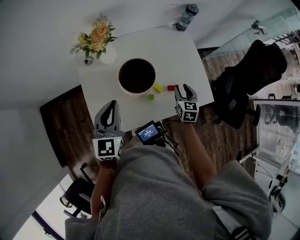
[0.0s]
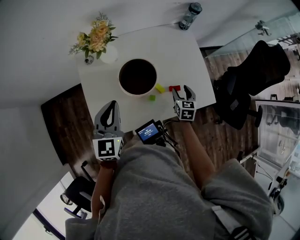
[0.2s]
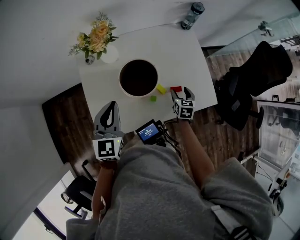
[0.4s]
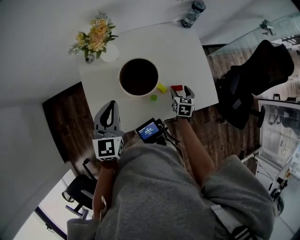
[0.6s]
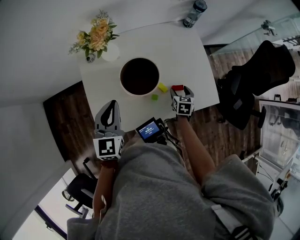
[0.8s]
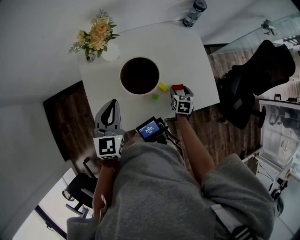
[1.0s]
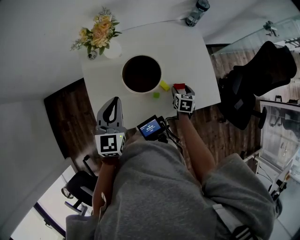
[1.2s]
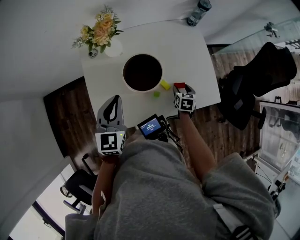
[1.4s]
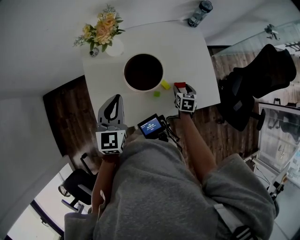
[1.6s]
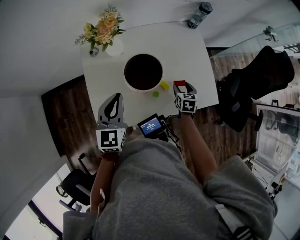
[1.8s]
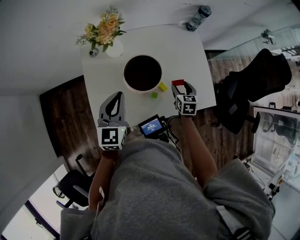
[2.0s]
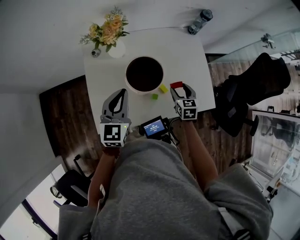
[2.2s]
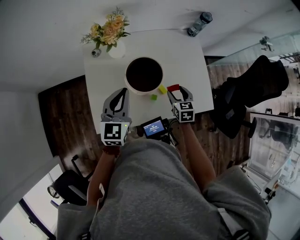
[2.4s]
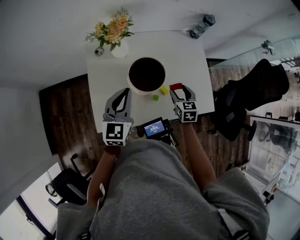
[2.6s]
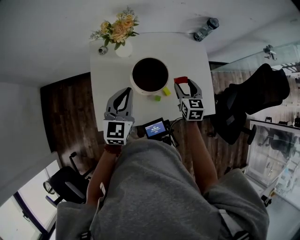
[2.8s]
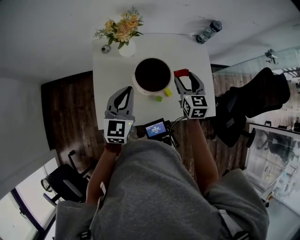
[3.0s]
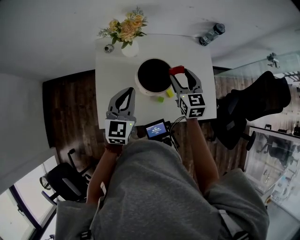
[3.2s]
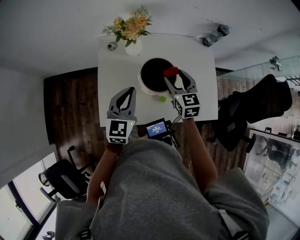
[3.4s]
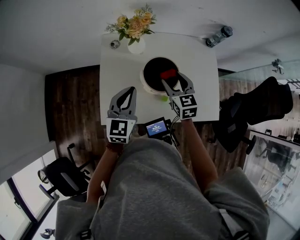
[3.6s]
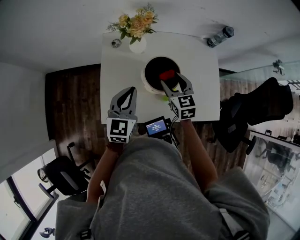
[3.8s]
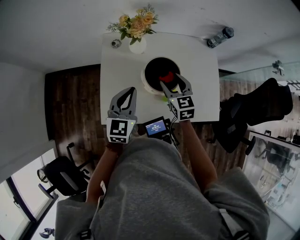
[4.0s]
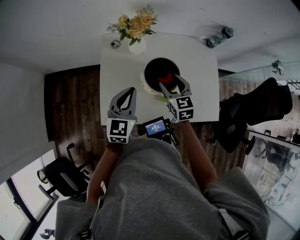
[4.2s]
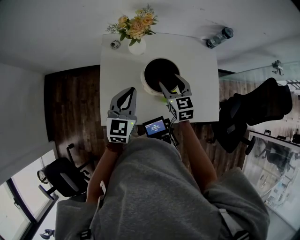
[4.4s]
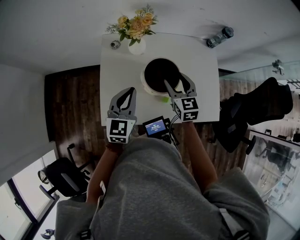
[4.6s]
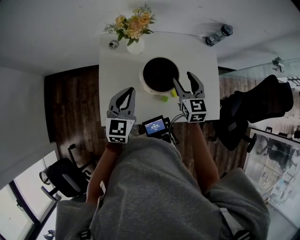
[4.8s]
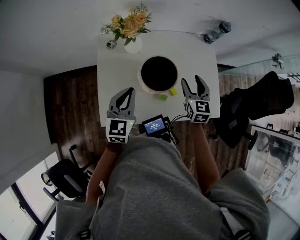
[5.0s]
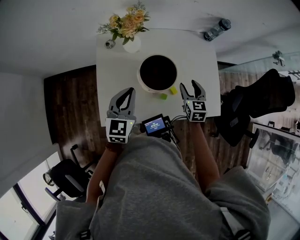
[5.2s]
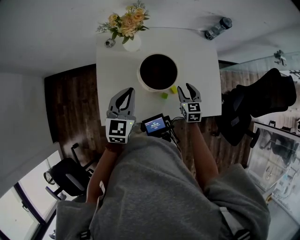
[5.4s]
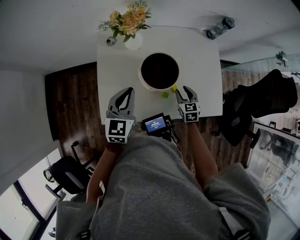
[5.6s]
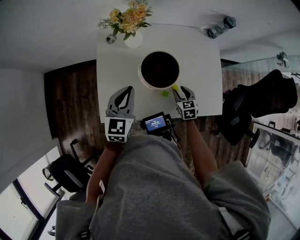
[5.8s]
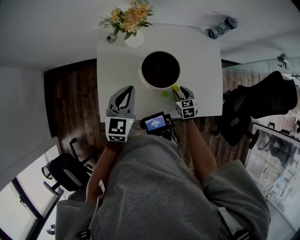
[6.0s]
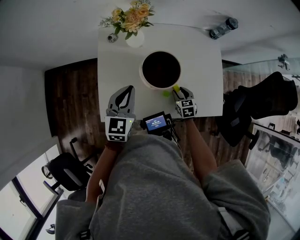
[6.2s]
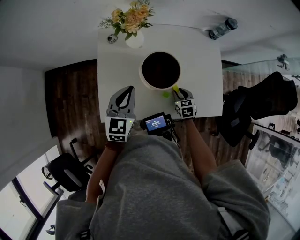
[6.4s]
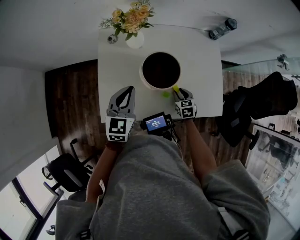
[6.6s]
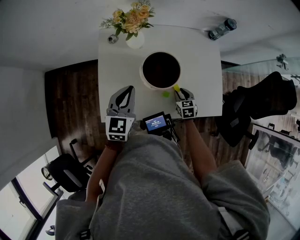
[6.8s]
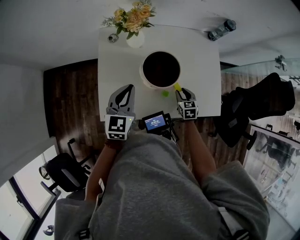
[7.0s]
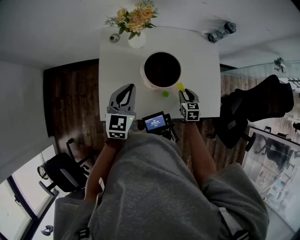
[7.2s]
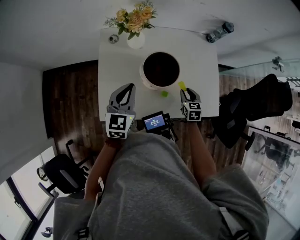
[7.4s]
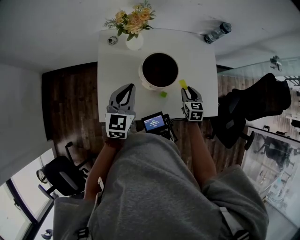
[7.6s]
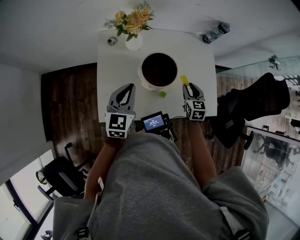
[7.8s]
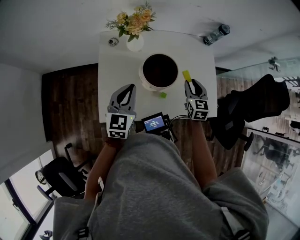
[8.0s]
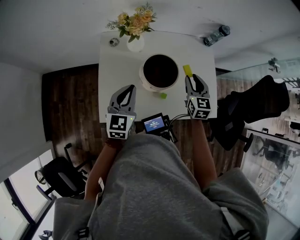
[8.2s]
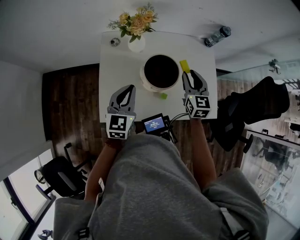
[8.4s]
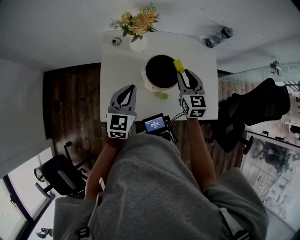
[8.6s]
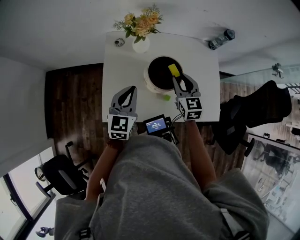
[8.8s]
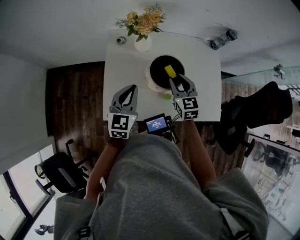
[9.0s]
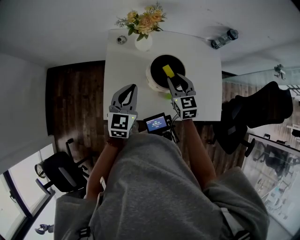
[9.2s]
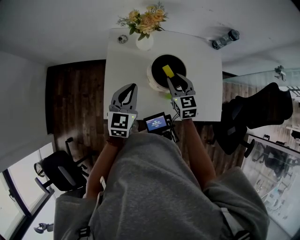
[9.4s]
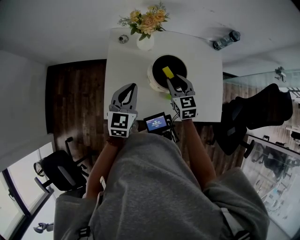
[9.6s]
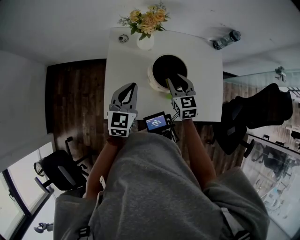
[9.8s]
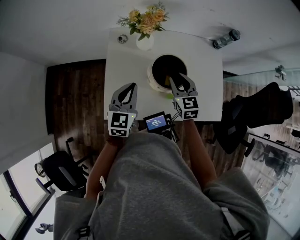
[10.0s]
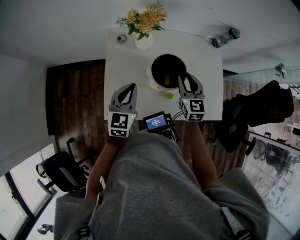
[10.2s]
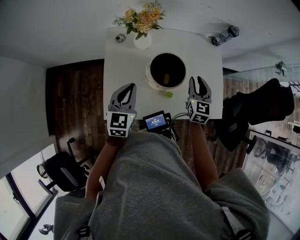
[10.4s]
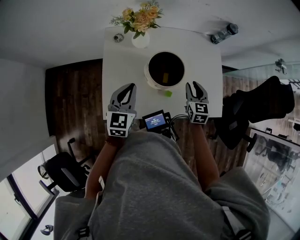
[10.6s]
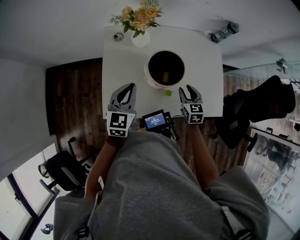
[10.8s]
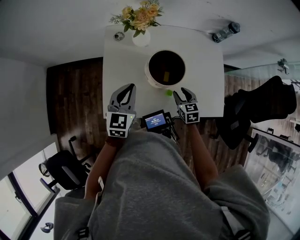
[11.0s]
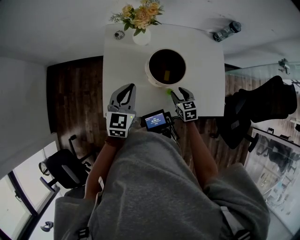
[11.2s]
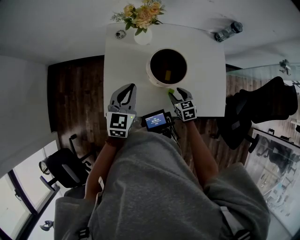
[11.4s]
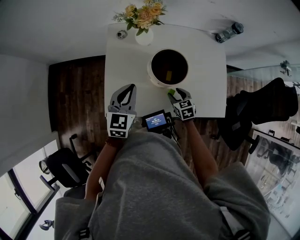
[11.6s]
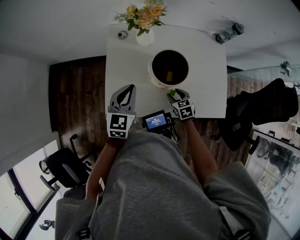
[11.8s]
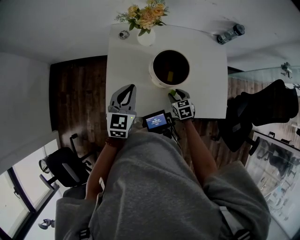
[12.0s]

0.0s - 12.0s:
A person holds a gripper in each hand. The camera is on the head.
0.0s - 1.6s: The right gripper is displaced downward by about 10 cm.
1.6s - 3.0s: The right gripper shifts roughly 25 cm upward and to the left, and rotates some 30 degrees.
3.0s - 4.4s: The right gripper is displaced to the left by roughly 10 cm.
4.4s - 6.0s: The right gripper shifts about 25 cm downward and to the right, and rotates some 20 degrees.
6.0s - 7.6s: The right gripper heads upward, covering roughly 10 cm.
7.6s - 9.0s: The right gripper shifts some 20 cm to the left and upward, and swivels roughly 20 degrees.
9.0s - 10.4s: The right gripper moves to the right, some 10 cm.
10.4s - 12.0s: The right gripper is displaced downward by roughly 20 cm, and tilts its fingers approximately 30 degrees downward.

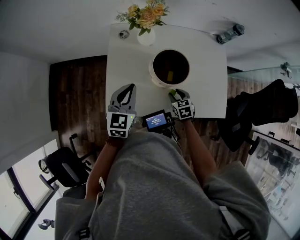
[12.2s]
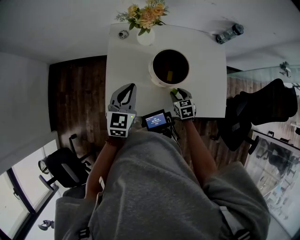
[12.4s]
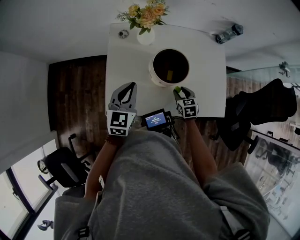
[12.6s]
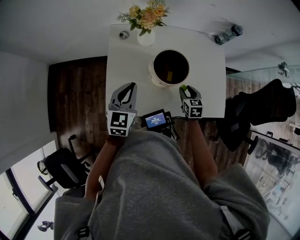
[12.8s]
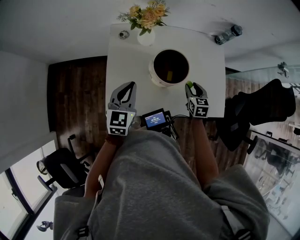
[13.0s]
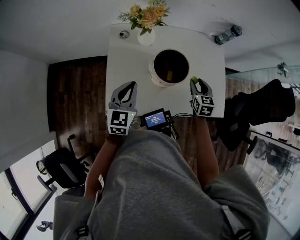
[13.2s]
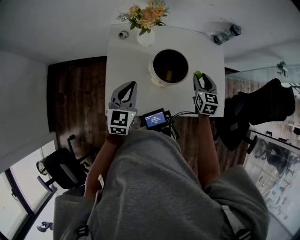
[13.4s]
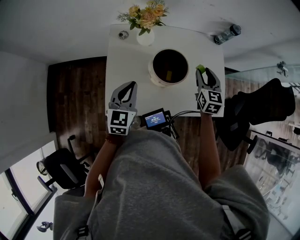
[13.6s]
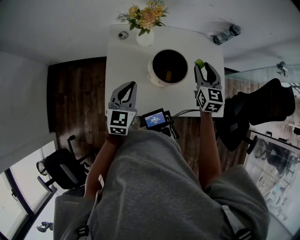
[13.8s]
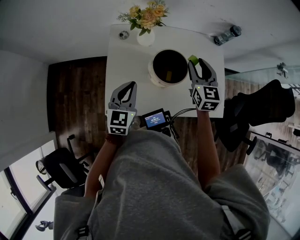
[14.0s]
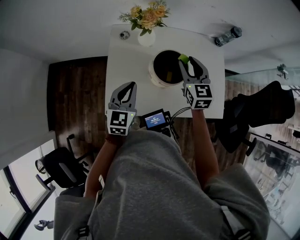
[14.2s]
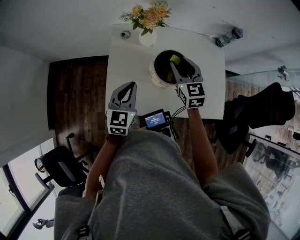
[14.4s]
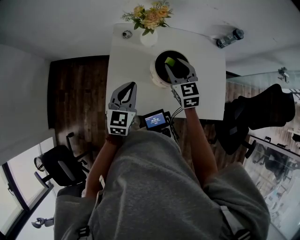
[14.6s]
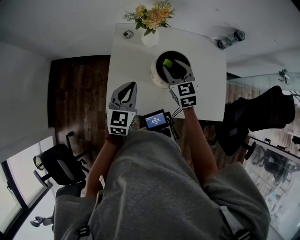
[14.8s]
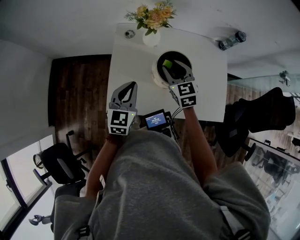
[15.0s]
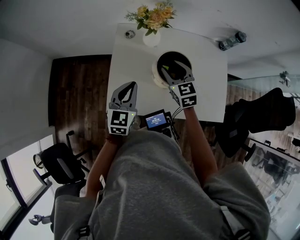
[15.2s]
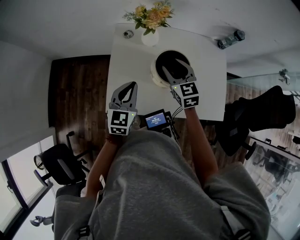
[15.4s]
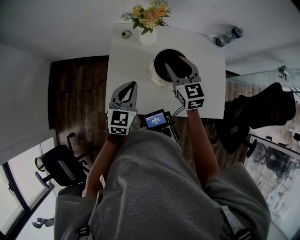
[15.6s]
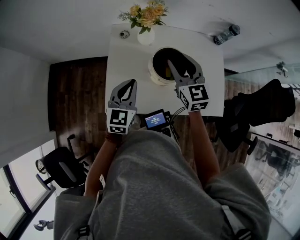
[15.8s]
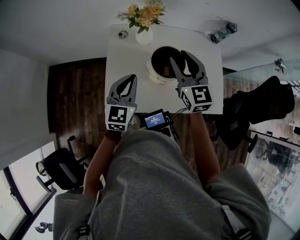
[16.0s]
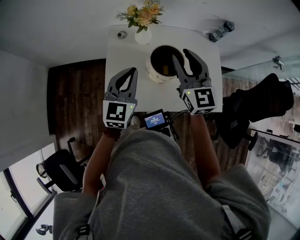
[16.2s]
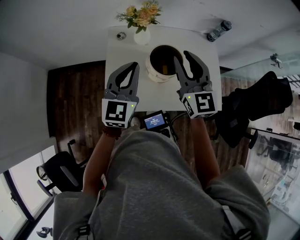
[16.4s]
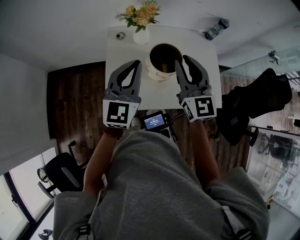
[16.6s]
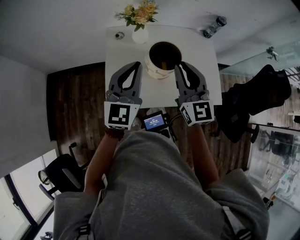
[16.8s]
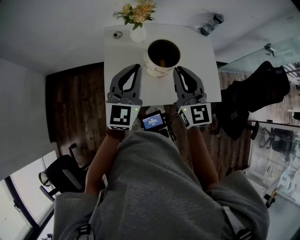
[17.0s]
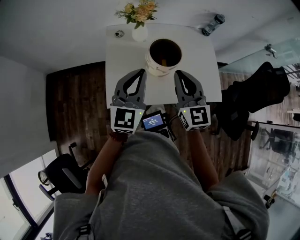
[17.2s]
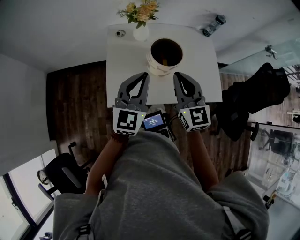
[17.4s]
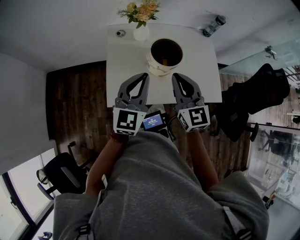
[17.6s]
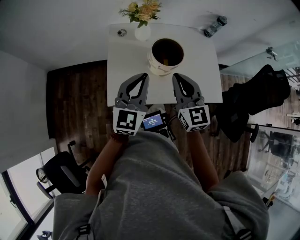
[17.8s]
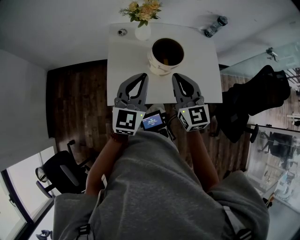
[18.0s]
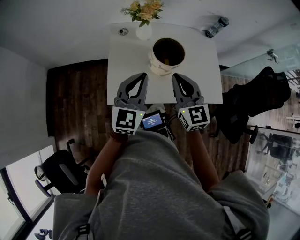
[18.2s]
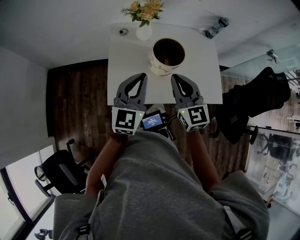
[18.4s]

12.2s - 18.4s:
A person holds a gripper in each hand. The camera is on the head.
12.2s - 13.8s: The right gripper heads upward and forward, covering some 30 cm, and points its fingers approximately 30 degrees further upward.
13.8s - 15.4s: The right gripper moves to the left, some 15 cm, and turns by approximately 20 degrees.
15.4s - 16.8s: The left gripper travels upward by approximately 15 cm, and rotates approximately 20 degrees. Meanwhile the right gripper shifts about 20 cm upward and backward, turns by approximately 30 degrees, and closes up.
16.8s - 18.4s: The right gripper moves downward, roughly 5 cm, while the left gripper is displaced backward by roughly 5 cm.

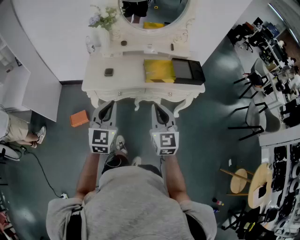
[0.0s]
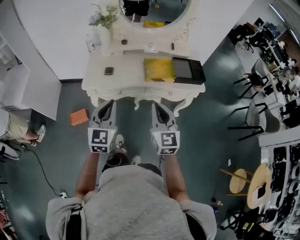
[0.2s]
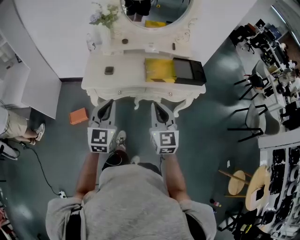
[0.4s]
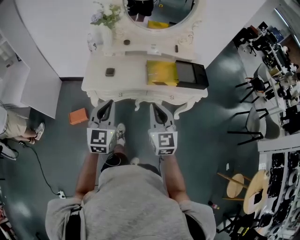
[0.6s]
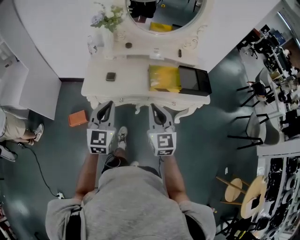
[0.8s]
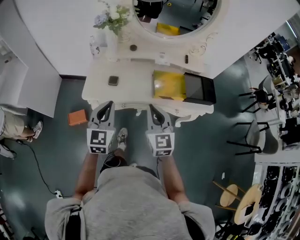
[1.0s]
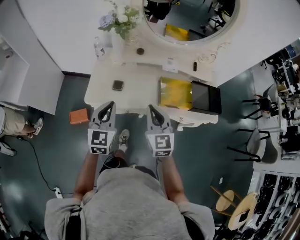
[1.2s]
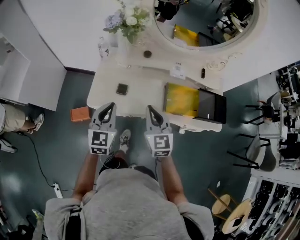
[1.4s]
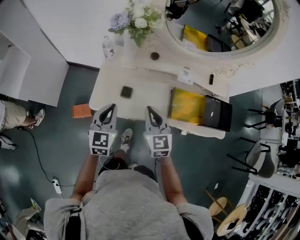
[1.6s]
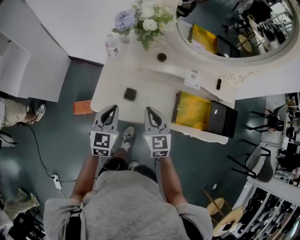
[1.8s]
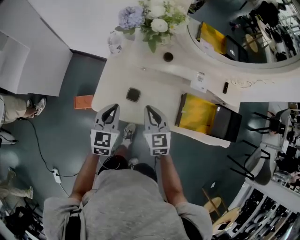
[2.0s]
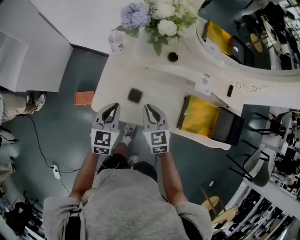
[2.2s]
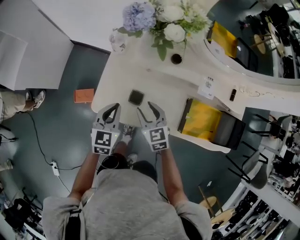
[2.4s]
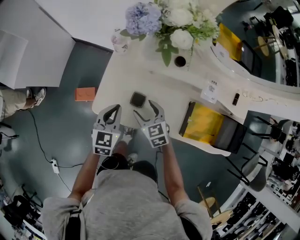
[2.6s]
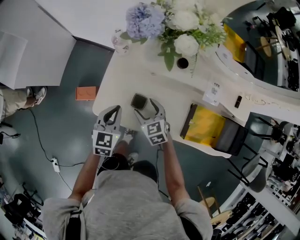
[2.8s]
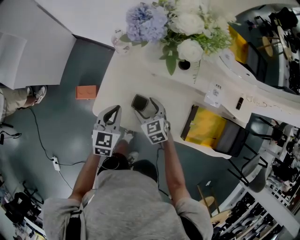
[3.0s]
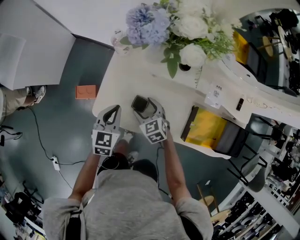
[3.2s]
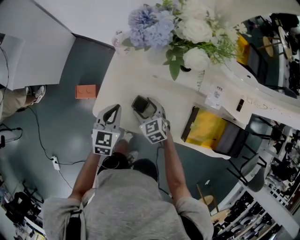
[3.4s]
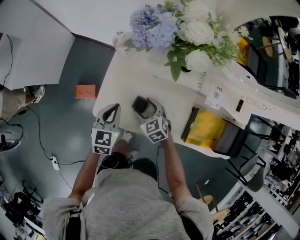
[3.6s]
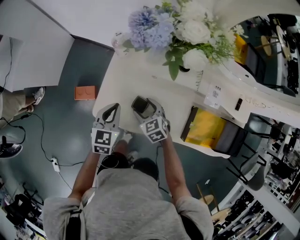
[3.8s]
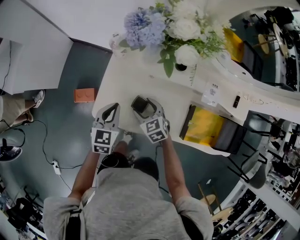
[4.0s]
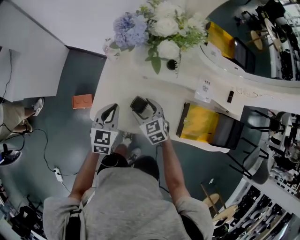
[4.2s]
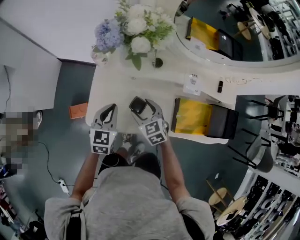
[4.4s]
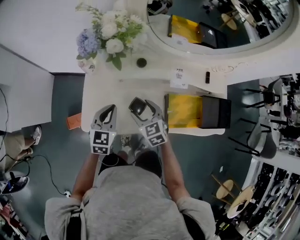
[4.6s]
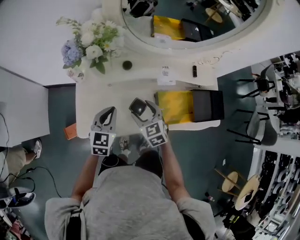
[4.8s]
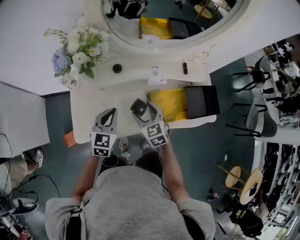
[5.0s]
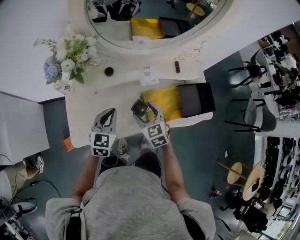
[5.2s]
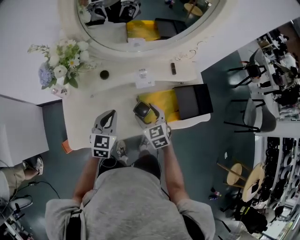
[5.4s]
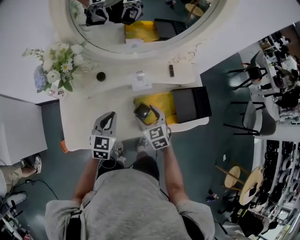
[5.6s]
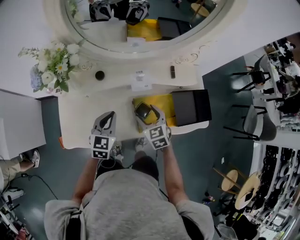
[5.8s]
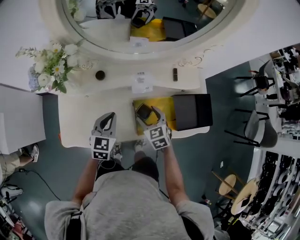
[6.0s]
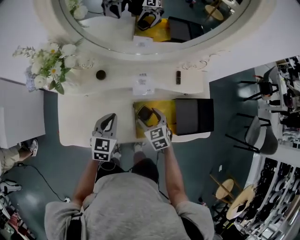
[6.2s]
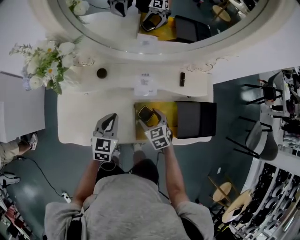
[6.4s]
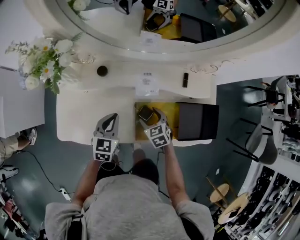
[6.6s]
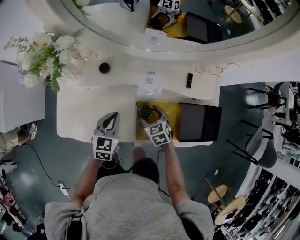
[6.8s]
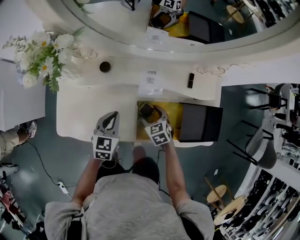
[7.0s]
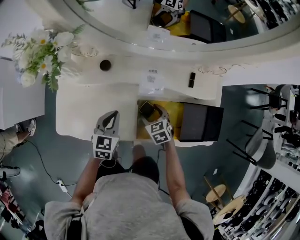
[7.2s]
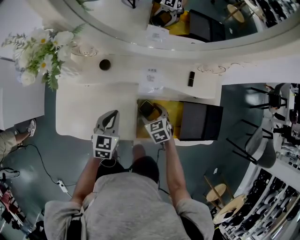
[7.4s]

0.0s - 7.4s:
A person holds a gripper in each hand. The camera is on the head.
0.0s - 1.4s: The left gripper is displaced forward by roughly 25 cm; the right gripper goes roughly 30 cm forward and to the left.
1.4s - 3.0s: Both grippers move downward and forward, some 25 cm. The right gripper swivels roughly 40 degrees, and opens its fingers. The left gripper turns by about 20 degrees.
3.0s - 4.4s: Both grippers travel together upward, roughly 5 cm.
4.4s - 6.0s: The grippers both shift to the right by some 25 cm.
6.0s - 7.4s: The right gripper travels downward by approximately 10 cm, while the left gripper shifts roughly 5 cm downward.
